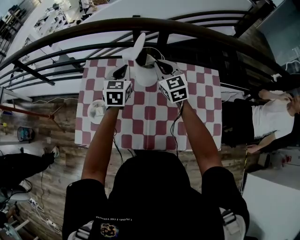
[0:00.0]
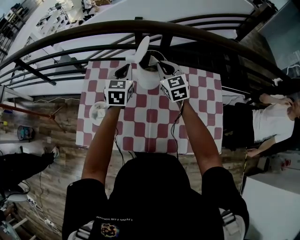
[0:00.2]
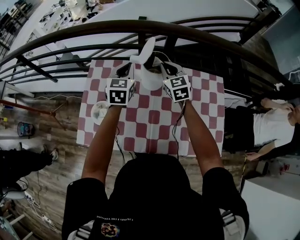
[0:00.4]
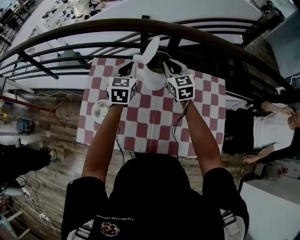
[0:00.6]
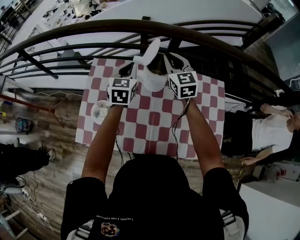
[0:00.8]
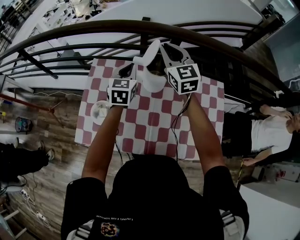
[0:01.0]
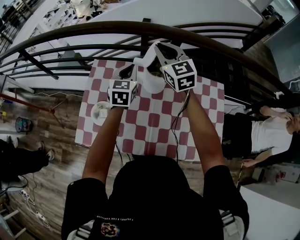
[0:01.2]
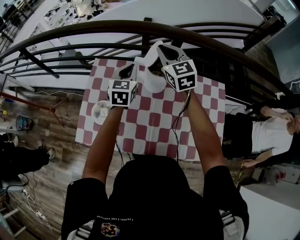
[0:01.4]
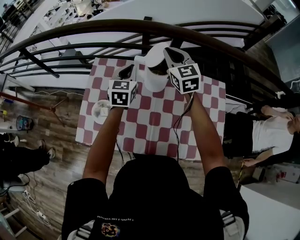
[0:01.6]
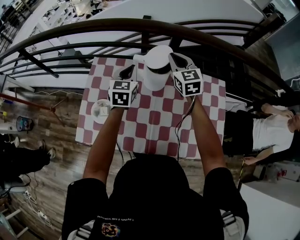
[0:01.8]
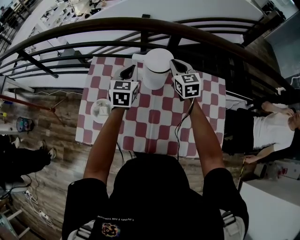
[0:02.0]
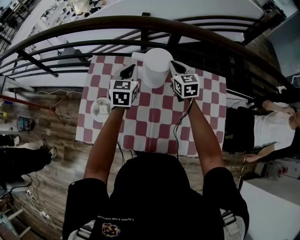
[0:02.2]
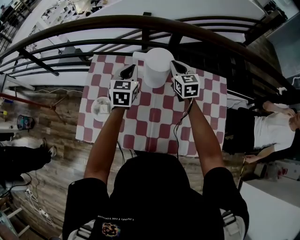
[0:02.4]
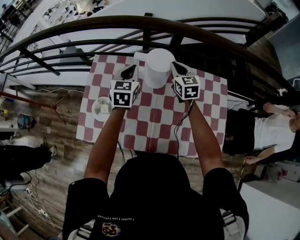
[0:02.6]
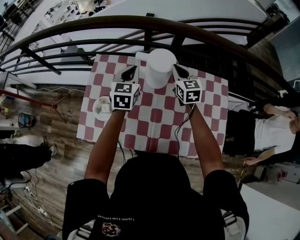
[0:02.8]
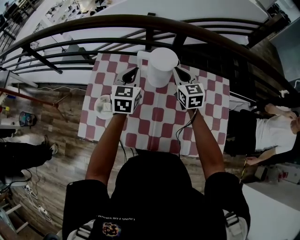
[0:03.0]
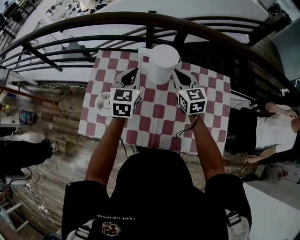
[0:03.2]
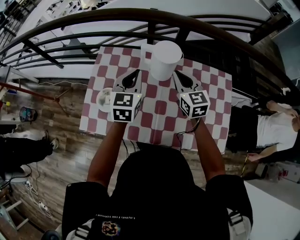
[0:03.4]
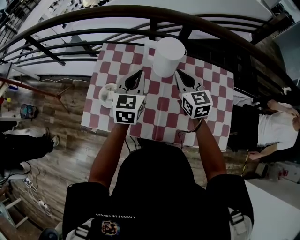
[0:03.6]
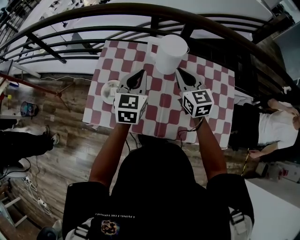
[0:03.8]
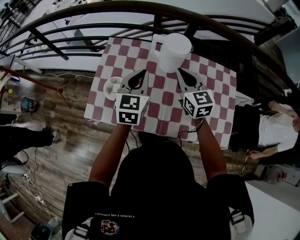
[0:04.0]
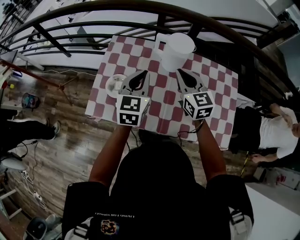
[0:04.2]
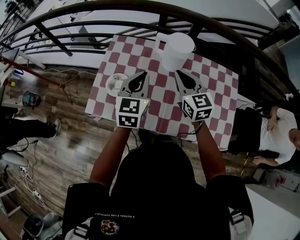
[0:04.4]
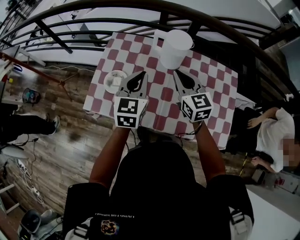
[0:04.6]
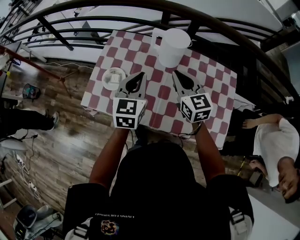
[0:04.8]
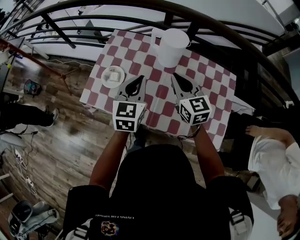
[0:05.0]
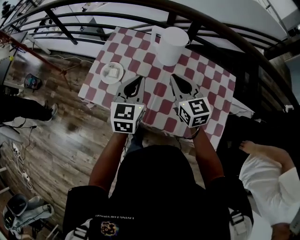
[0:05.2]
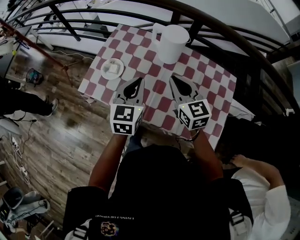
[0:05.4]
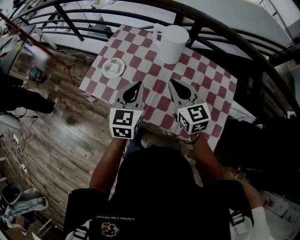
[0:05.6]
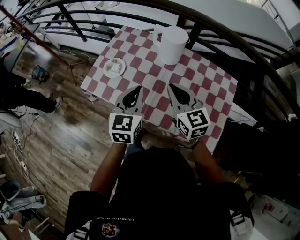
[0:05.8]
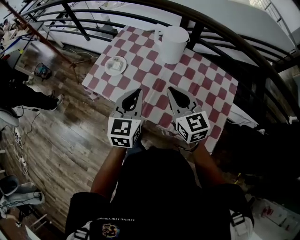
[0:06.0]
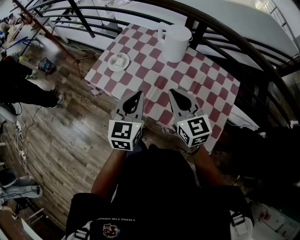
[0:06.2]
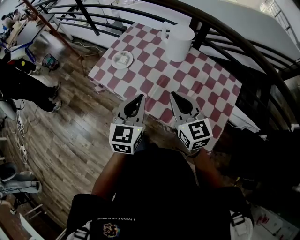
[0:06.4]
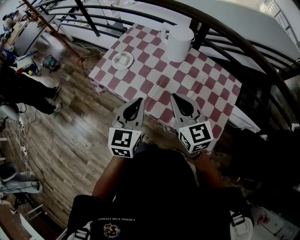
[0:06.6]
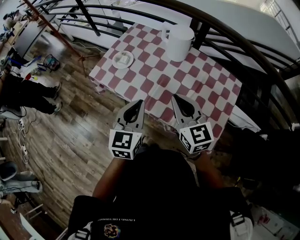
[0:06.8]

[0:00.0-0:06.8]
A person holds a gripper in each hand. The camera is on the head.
0:00.0 to 0:01.4: The right gripper shifts approximately 10 cm upward and forward.
0:01.4 to 0:02.8: The right gripper is displaced downward and to the right by some 15 cm.
0:02.8 to 0:04.0: The right gripper is displaced backward and to the left by about 15 cm, while the left gripper heads backward, covering some 15 cm.
0:04.0 to 0:05.4: The grippers both shift backward by roughly 10 cm.
0:05.4 to 0:06.8: Both grippers travel together backward, about 15 cm.

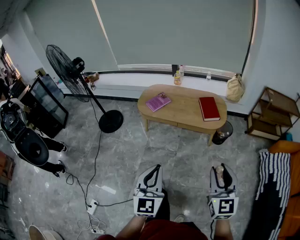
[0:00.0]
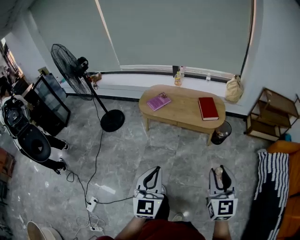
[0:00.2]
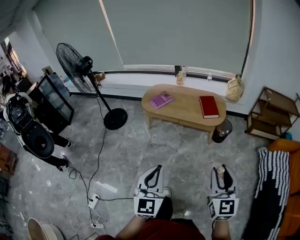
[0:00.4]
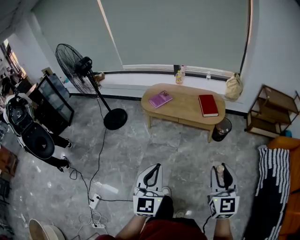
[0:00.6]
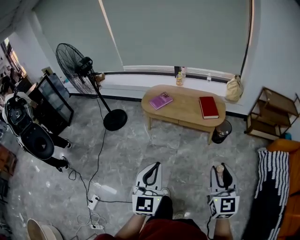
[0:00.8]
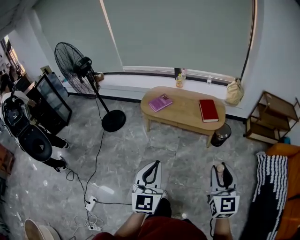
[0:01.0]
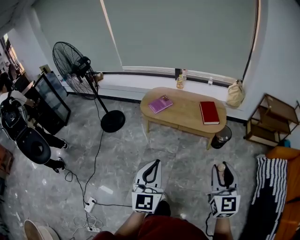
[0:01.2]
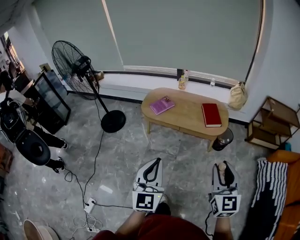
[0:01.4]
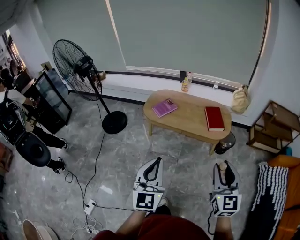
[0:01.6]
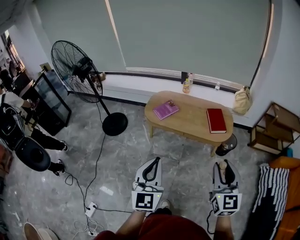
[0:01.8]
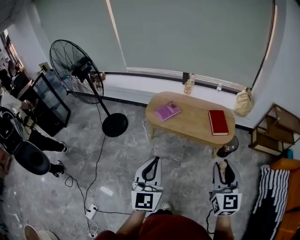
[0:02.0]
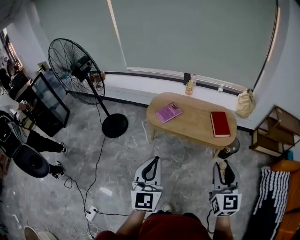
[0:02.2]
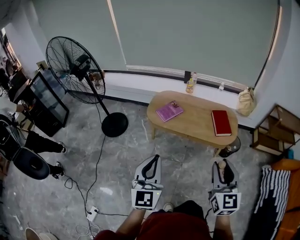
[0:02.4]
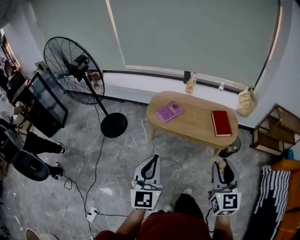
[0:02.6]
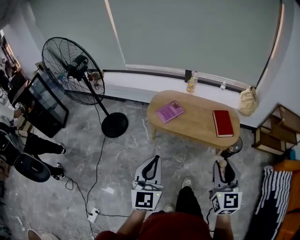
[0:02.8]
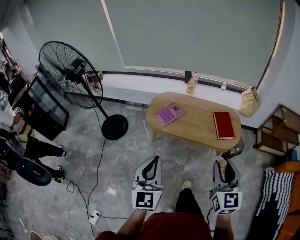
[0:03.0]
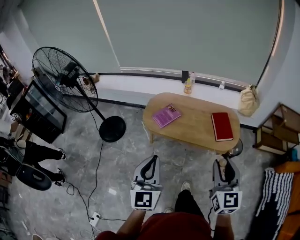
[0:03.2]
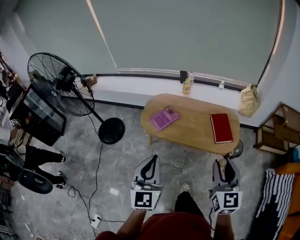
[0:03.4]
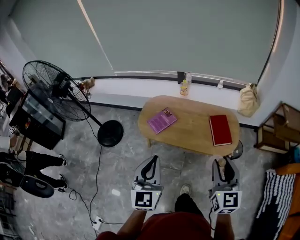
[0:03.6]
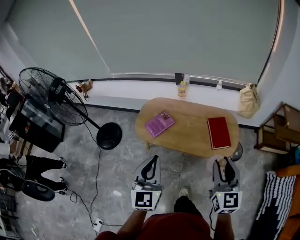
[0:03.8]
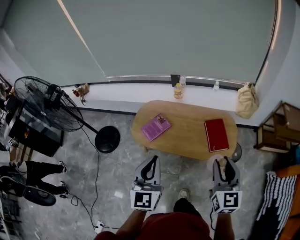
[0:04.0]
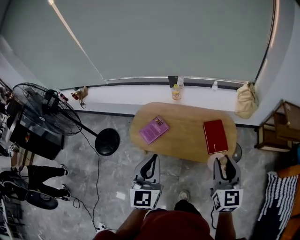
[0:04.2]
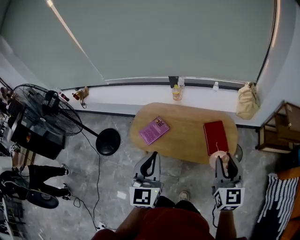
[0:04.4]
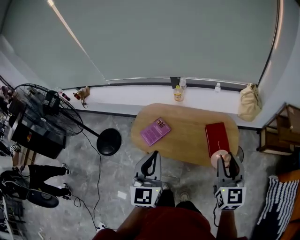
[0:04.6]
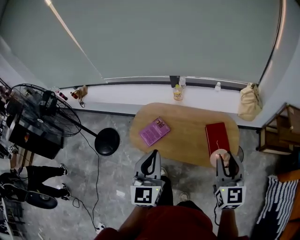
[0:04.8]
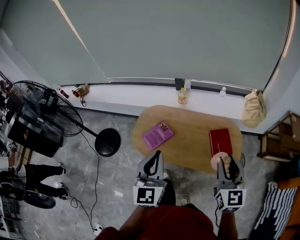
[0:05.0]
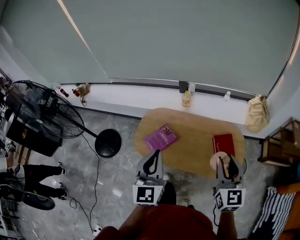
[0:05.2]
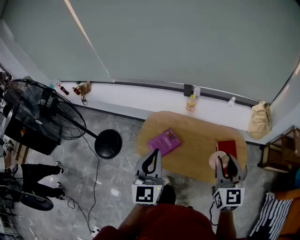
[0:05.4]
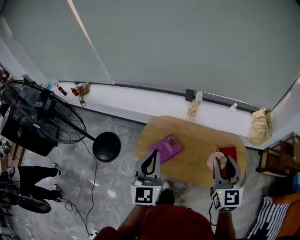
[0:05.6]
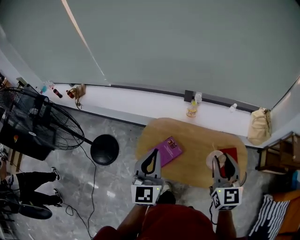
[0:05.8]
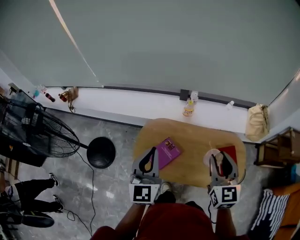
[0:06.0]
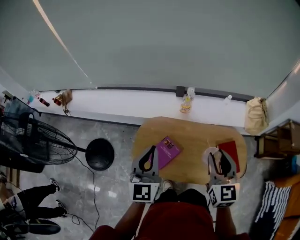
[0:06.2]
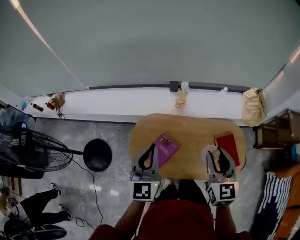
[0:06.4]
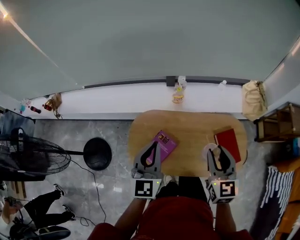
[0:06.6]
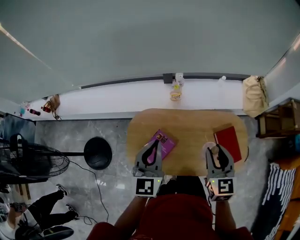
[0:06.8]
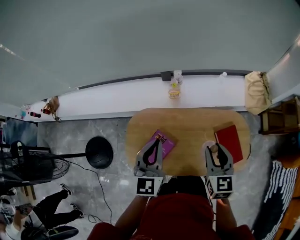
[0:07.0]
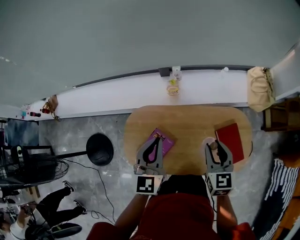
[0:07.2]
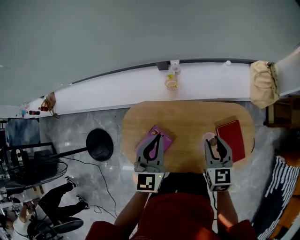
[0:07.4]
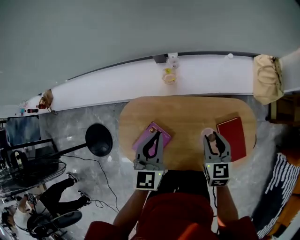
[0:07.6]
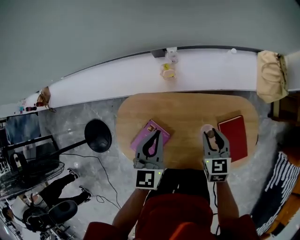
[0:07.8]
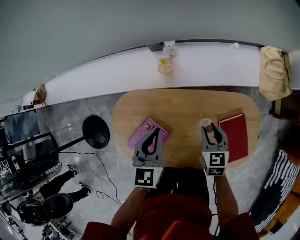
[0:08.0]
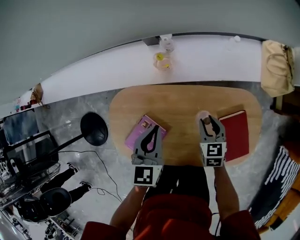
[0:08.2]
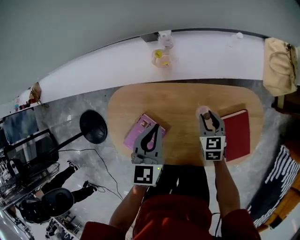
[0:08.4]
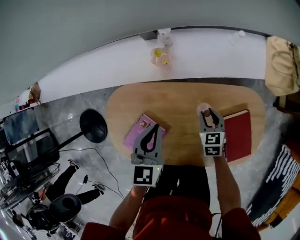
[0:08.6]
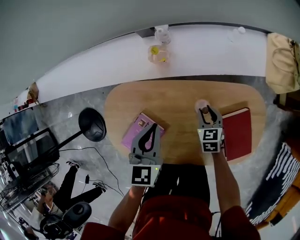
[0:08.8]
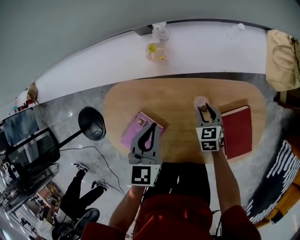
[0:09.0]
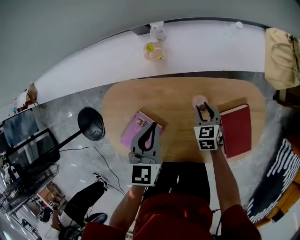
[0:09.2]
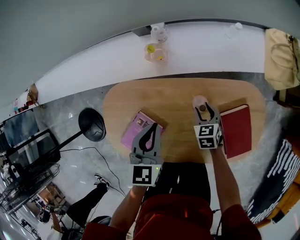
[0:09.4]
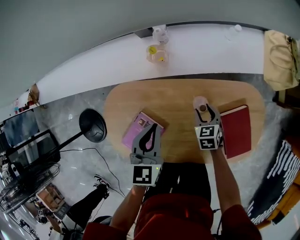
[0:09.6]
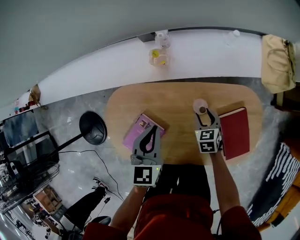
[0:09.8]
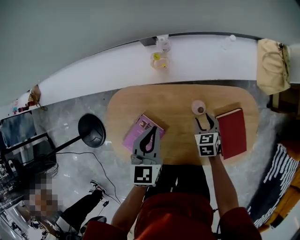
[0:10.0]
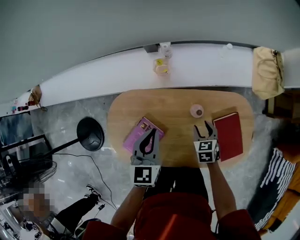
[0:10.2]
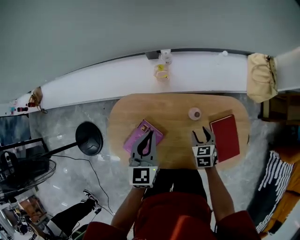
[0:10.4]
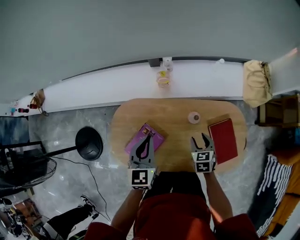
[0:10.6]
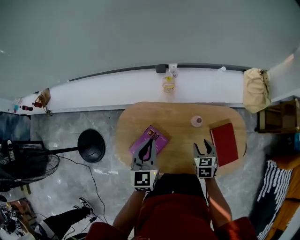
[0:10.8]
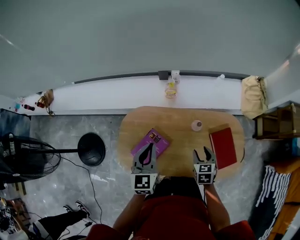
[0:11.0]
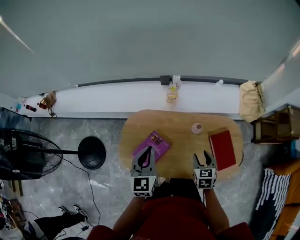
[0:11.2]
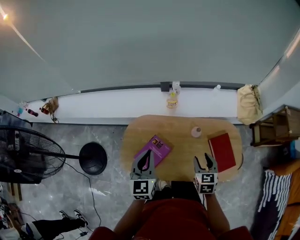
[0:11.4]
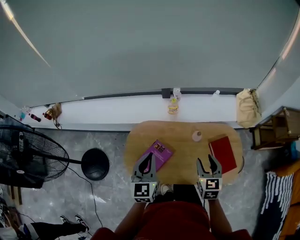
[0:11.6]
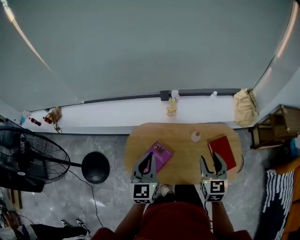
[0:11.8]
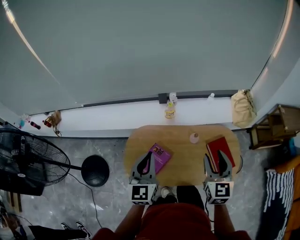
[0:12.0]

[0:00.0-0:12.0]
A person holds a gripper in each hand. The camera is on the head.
0:00.0 to 0:01.6: The left gripper travels forward and upward by approximately 10 cm. The right gripper travels forward by about 5 cm.
0:01.6 to 0:03.0: Both grippers move forward and to the left, about 20 cm.
0:03.0 to 0:04.4: Both grippers move forward and to the right, some 30 cm.
0:04.4 to 0:06.0: The grippers both shift forward and to the left by about 35 cm.
0:06.0 to 0:07.6: The left gripper heads forward, downward and to the right, covering about 35 cm, and turns by about 20 degrees, while the right gripper heads downward, forward and to the right, covering some 35 cm, and rotates approximately 30 degrees.
0:07.6 to 0:09.0: The left gripper goes about 15 cm downward; the right gripper moves downward, approximately 25 cm.
0:09.0 to 0:10.4: The two grippers go some 10 cm upward and backward.
0:10.4 to 0:12.0: The left gripper travels upward, backward and to the left by about 25 cm, and changes its angle by some 20 degrees, while the right gripper shifts approximately 40 cm upward and backward, and angles its fingers upward, by approximately 40 degrees.

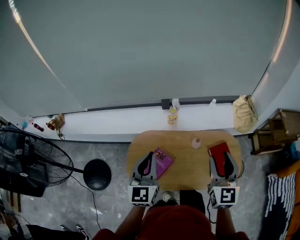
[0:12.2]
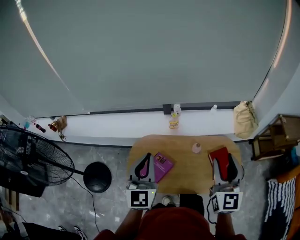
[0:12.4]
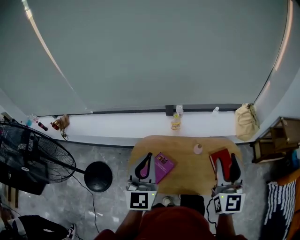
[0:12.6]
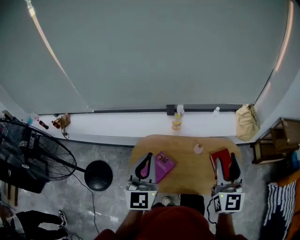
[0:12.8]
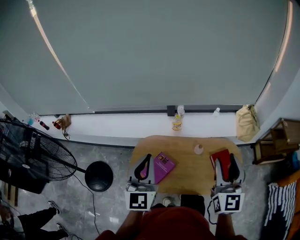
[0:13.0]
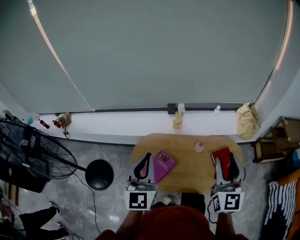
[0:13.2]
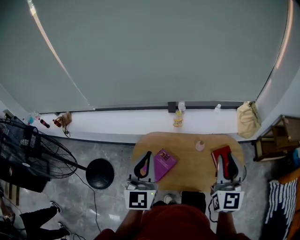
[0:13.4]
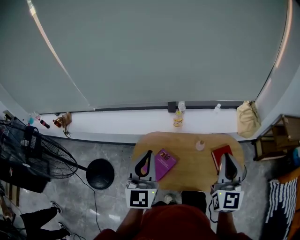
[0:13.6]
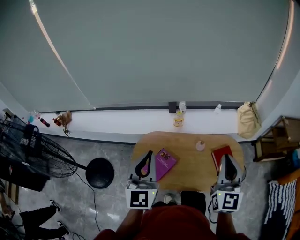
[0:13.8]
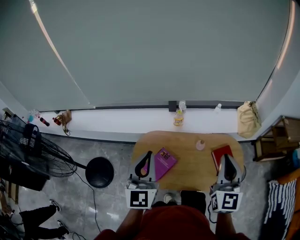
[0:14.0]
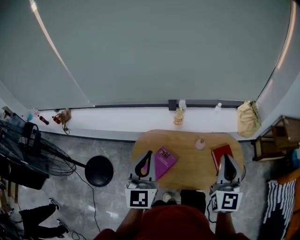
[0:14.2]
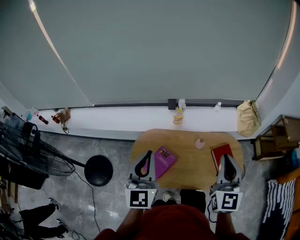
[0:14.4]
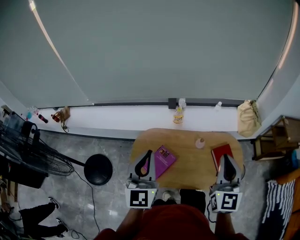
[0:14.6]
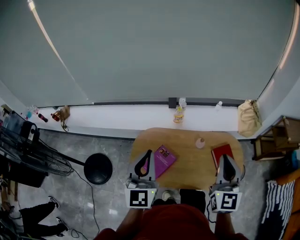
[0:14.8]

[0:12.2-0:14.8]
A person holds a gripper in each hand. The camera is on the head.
0:12.2 to 0:13.4: The grippers both shift upward by some 5 cm. The right gripper closes up.
0:13.4 to 0:14.8: The right gripper closes its fingers.

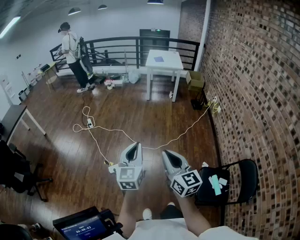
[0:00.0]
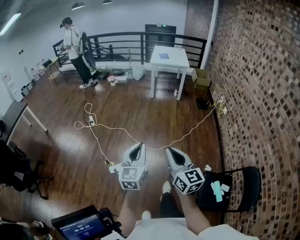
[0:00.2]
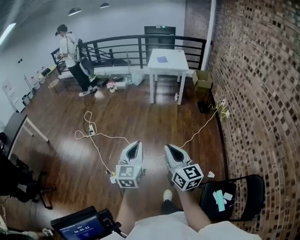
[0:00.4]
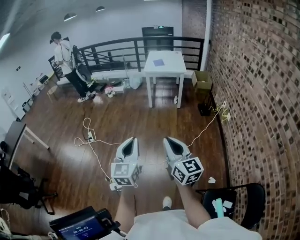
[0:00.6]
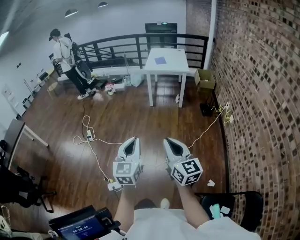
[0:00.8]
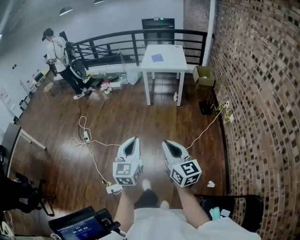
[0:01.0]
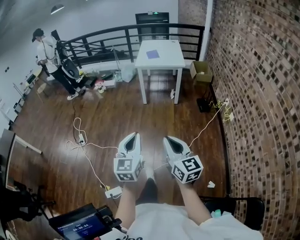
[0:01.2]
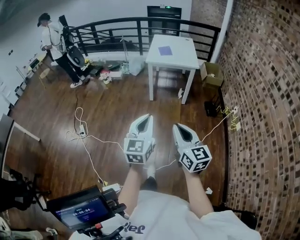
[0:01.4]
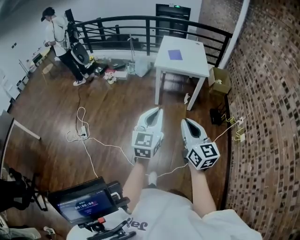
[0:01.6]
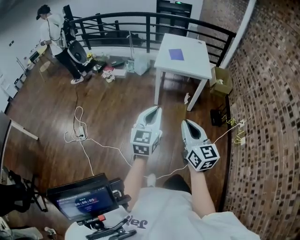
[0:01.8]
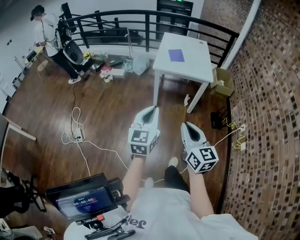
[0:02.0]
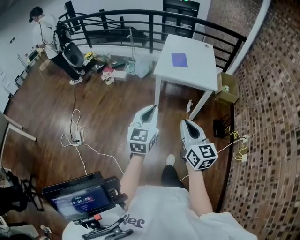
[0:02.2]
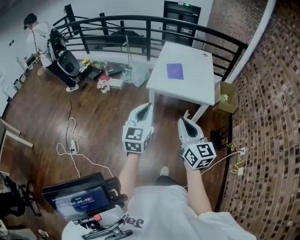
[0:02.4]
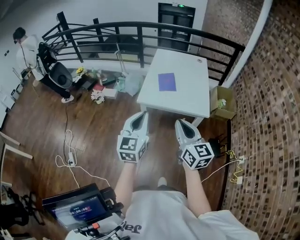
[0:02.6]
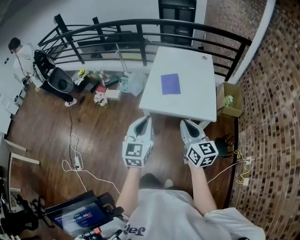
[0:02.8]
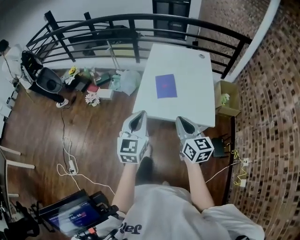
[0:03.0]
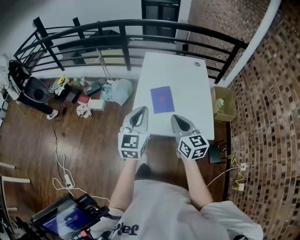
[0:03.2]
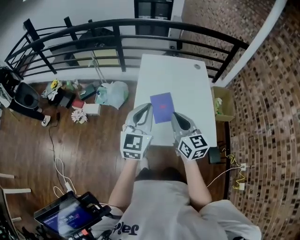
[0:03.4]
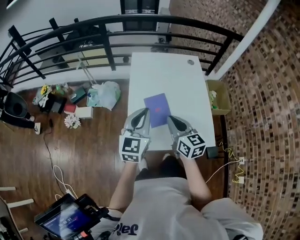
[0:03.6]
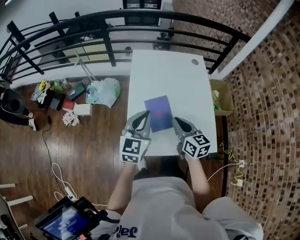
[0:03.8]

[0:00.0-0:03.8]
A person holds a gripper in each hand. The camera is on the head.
0:00.0 to 0:01.2: Both grippers are carried forward and to the right, roughly 50 cm.
0:01.2 to 0:02.6: The two grippers travel together, forward, some 70 cm.
0:02.6 to 0:03.8: Both grippers are carried forward, some 50 cm.
